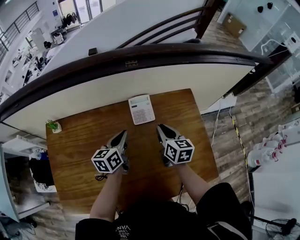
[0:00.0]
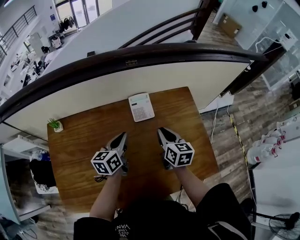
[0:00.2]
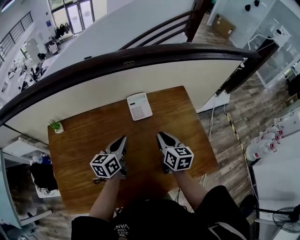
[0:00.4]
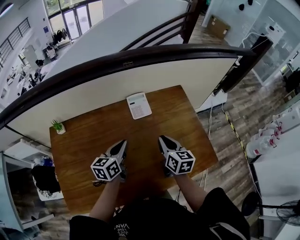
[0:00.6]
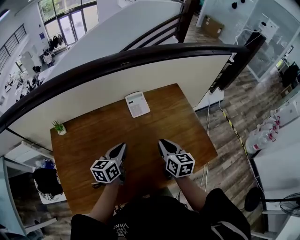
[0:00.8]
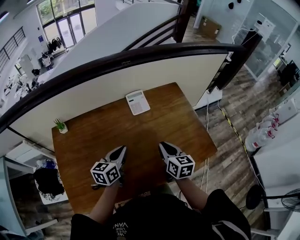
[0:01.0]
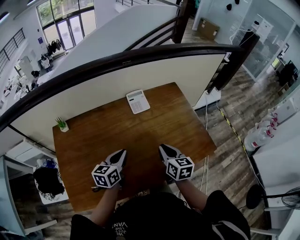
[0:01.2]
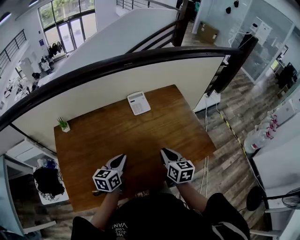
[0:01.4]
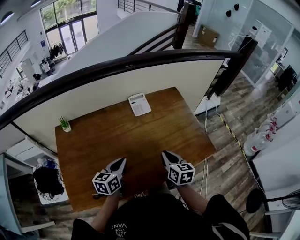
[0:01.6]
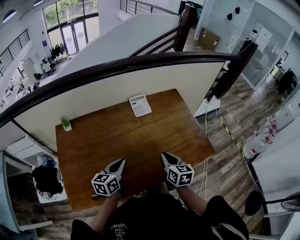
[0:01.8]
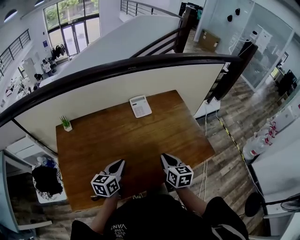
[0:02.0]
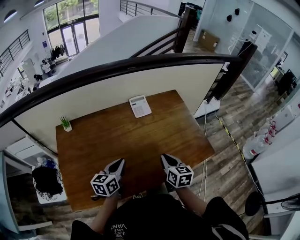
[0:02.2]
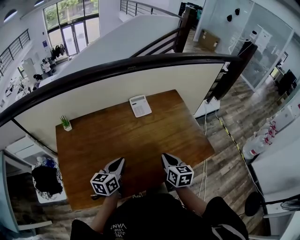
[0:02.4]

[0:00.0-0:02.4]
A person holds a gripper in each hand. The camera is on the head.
0:00.0 to 0:01.2: The grippers both shift backward by roughly 20 cm.
0:01.2 to 0:02.4: The left gripper ends up approximately 5 cm from where it was.

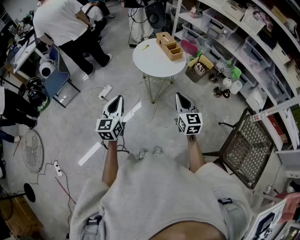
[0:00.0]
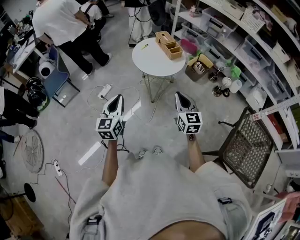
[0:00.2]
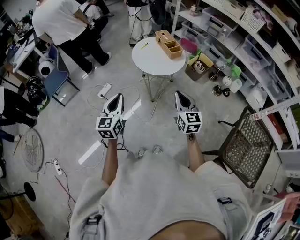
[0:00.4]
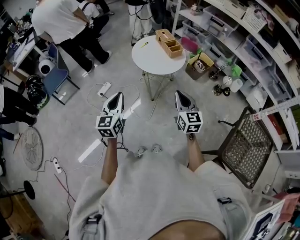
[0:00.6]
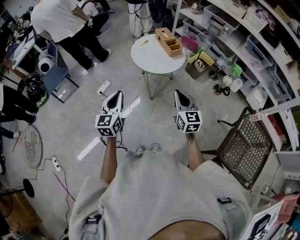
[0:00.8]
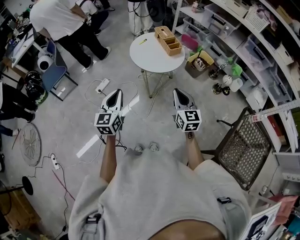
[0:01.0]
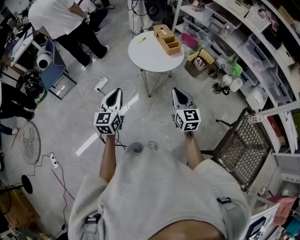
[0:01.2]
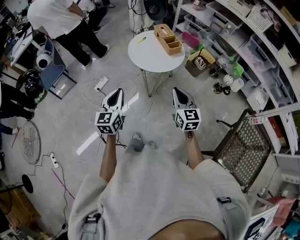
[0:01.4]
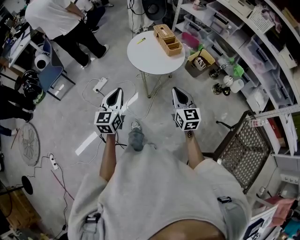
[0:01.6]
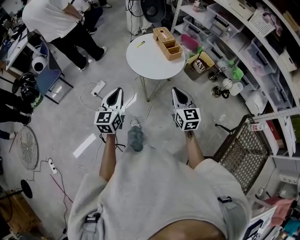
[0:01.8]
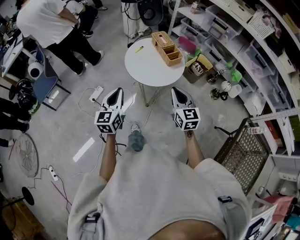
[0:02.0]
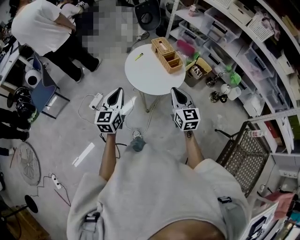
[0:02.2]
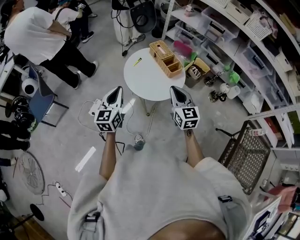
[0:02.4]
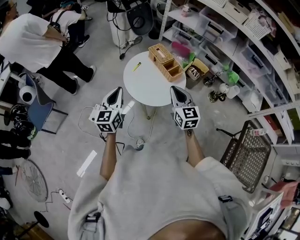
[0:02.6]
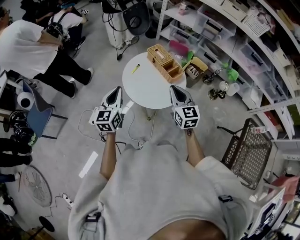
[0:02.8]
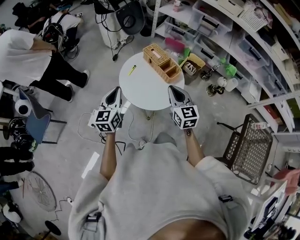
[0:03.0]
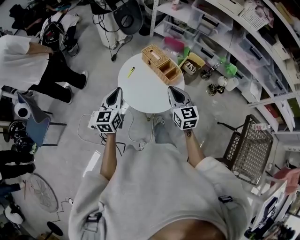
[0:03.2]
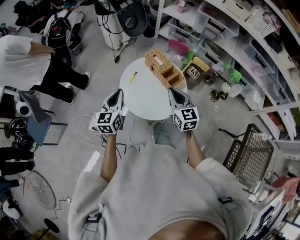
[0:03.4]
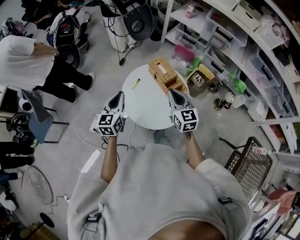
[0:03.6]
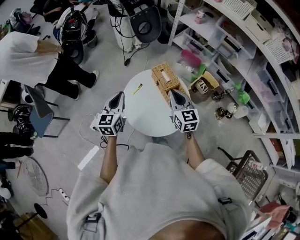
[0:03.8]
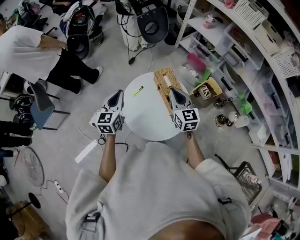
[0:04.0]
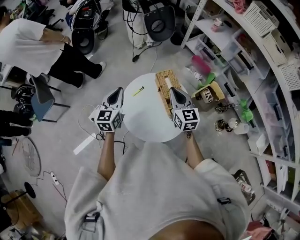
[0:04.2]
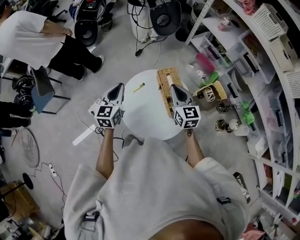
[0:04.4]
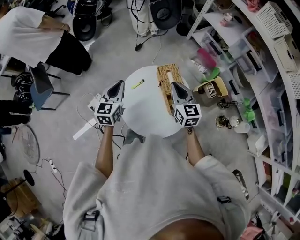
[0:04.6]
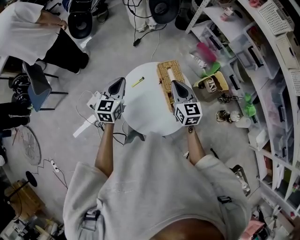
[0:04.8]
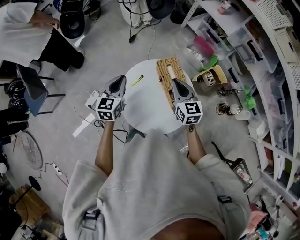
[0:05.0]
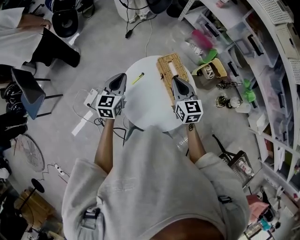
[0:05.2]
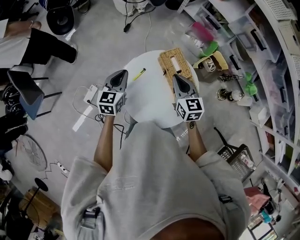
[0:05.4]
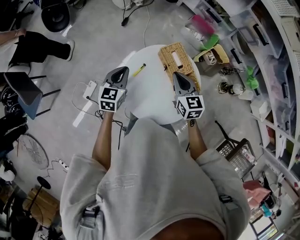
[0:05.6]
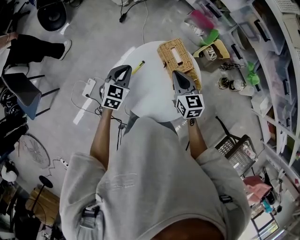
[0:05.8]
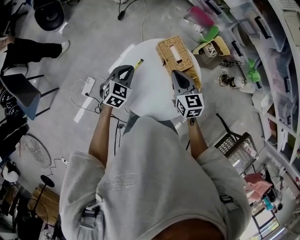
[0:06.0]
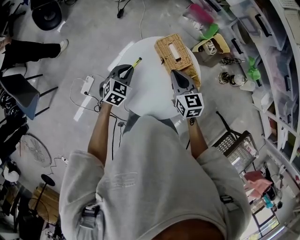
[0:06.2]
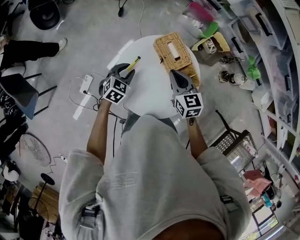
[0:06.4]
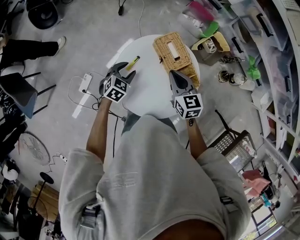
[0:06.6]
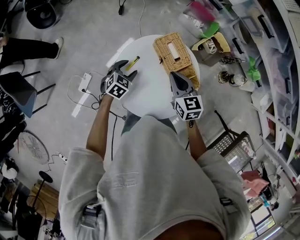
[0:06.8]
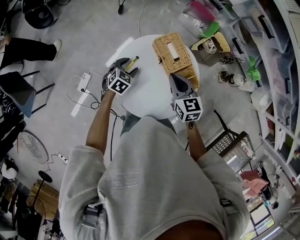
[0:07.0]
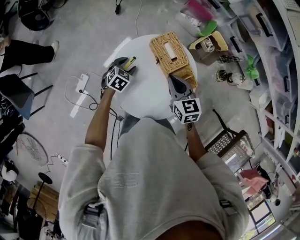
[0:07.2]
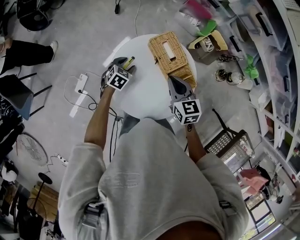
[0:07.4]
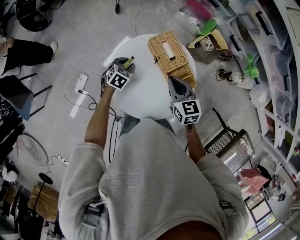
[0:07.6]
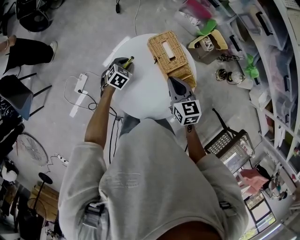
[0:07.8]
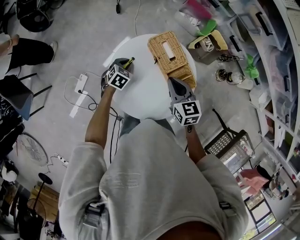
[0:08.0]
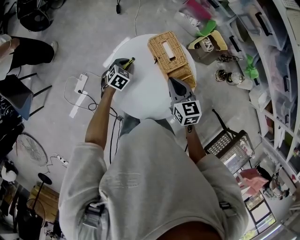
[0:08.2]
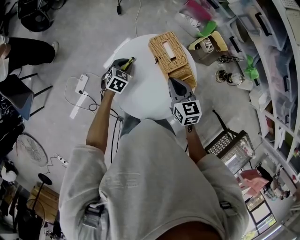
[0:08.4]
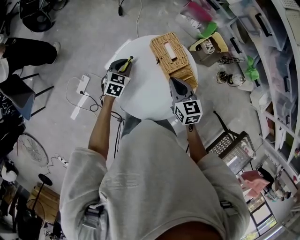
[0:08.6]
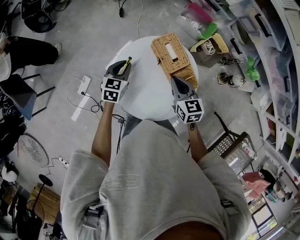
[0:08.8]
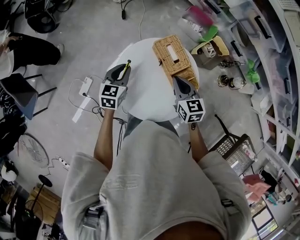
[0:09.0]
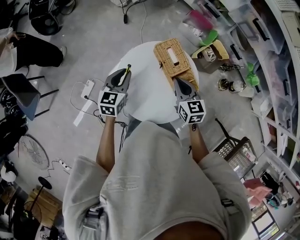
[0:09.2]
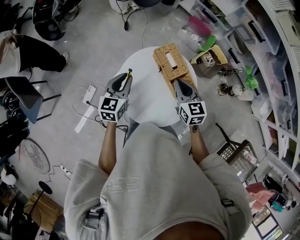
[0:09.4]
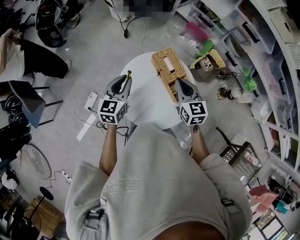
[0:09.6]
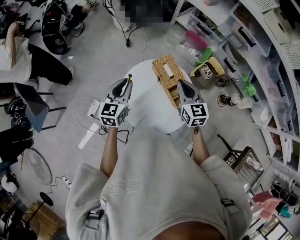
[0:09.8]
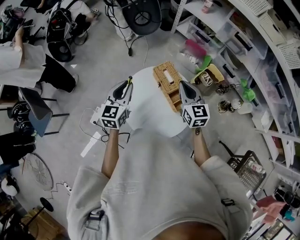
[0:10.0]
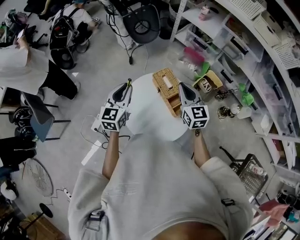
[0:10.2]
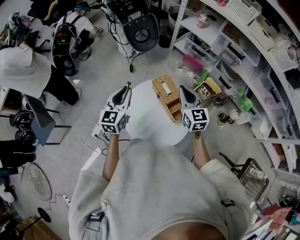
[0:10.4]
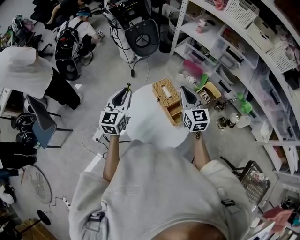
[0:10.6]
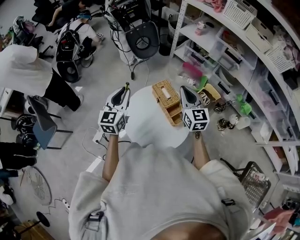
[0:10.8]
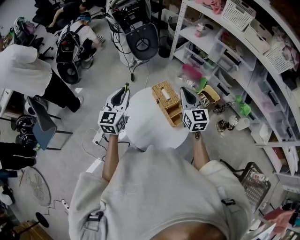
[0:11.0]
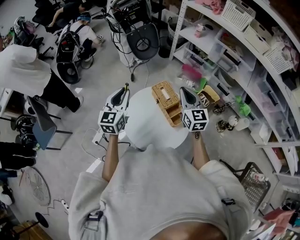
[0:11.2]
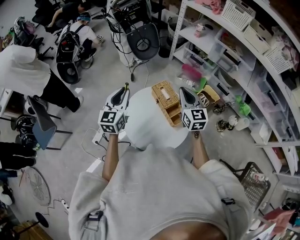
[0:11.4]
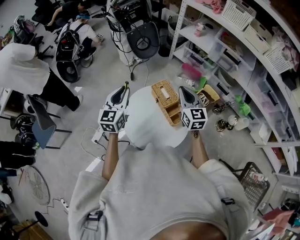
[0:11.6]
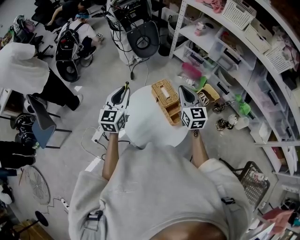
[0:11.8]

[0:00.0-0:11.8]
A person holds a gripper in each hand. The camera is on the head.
0:00.0 to 0:01.4: The left gripper is displaced to the right by some 5 cm. Meanwhile the right gripper shifts by about 5 cm.
0:01.4 to 0:03.0: Both grippers travel together forward, about 30 cm.
0:03.0 to 0:04.4: Both grippers travel together forward, roughly 20 cm. The right gripper changes its angle by roughly 20 degrees.
0:04.4 to 0:06.0: The right gripper moves downward, approximately 10 cm. The left gripper moves downward, approximately 15 cm, and swivels some 50 degrees.
0:06.0 to 0:07.4: The left gripper heads downward, covering roughly 15 cm, and opens its fingers.
0:07.4 to 0:08.8: The left gripper is displaced upward by approximately 10 cm, rotates about 30 degrees, and closes.
0:08.8 to 0:10.4: Both grippers travel together upward, approximately 20 cm. The right gripper rotates about 30 degrees, while the left gripper turns by roughly 30 degrees.
0:10.4 to 0:11.8: The grippers move only a little.

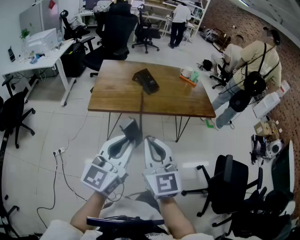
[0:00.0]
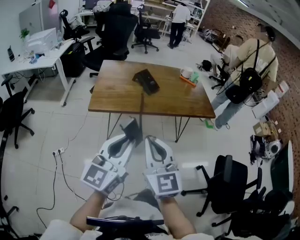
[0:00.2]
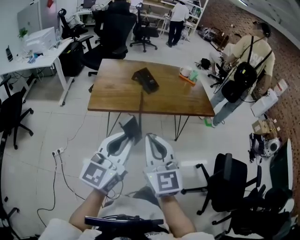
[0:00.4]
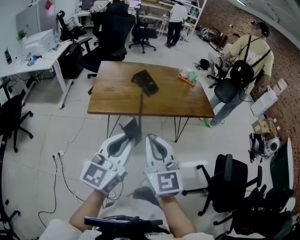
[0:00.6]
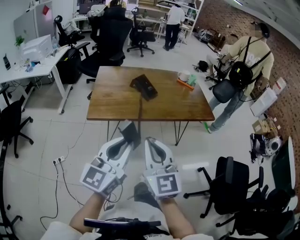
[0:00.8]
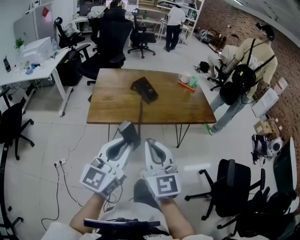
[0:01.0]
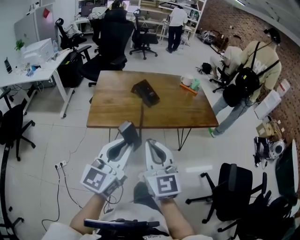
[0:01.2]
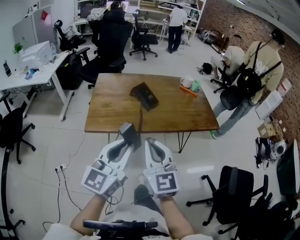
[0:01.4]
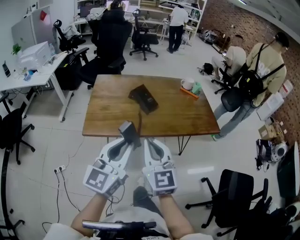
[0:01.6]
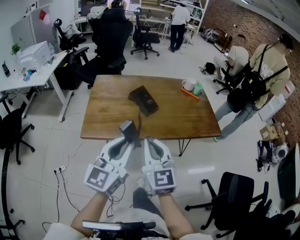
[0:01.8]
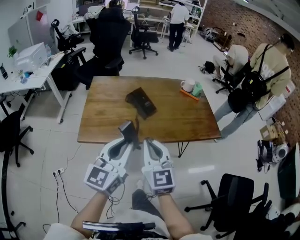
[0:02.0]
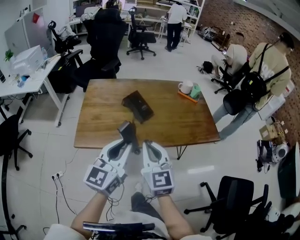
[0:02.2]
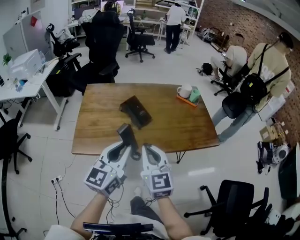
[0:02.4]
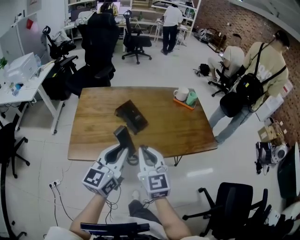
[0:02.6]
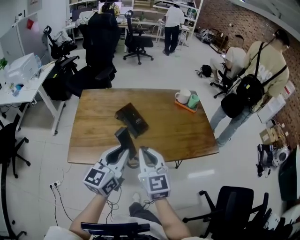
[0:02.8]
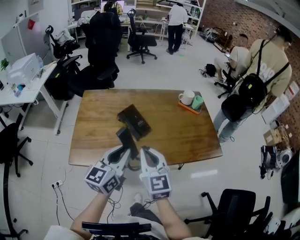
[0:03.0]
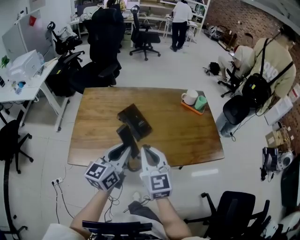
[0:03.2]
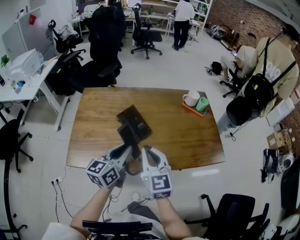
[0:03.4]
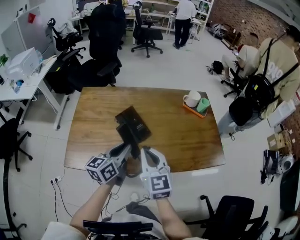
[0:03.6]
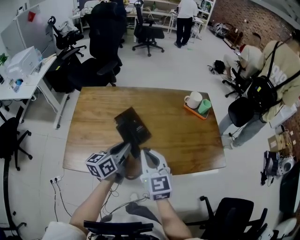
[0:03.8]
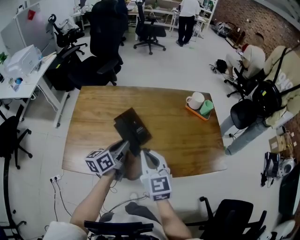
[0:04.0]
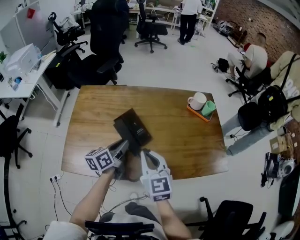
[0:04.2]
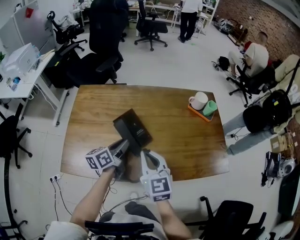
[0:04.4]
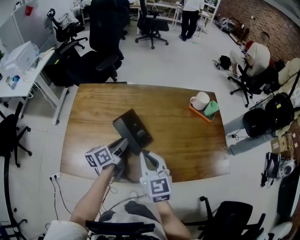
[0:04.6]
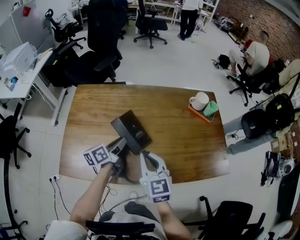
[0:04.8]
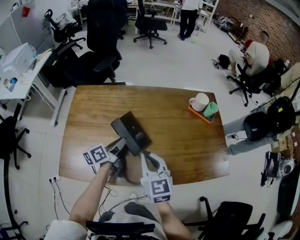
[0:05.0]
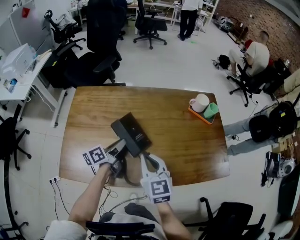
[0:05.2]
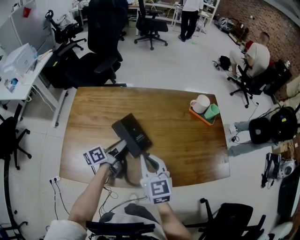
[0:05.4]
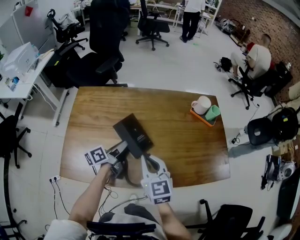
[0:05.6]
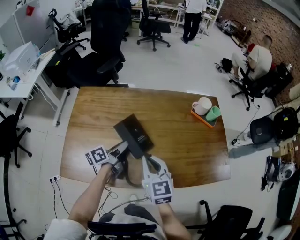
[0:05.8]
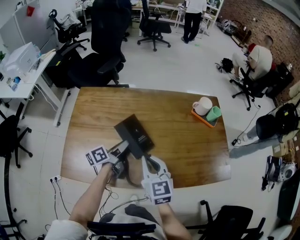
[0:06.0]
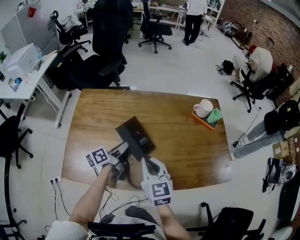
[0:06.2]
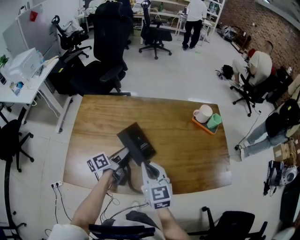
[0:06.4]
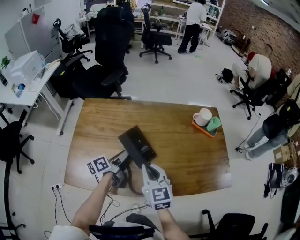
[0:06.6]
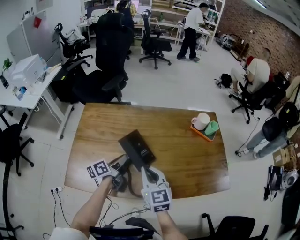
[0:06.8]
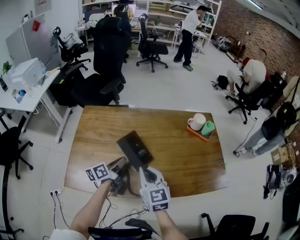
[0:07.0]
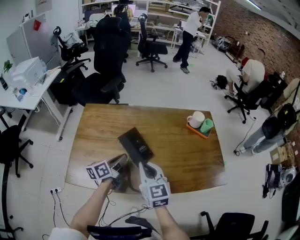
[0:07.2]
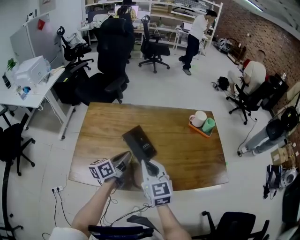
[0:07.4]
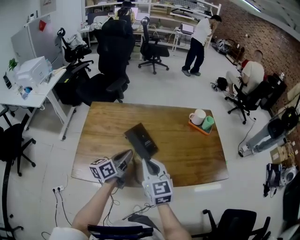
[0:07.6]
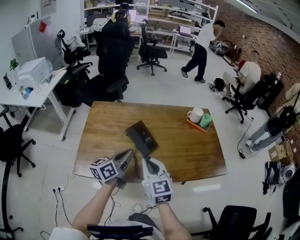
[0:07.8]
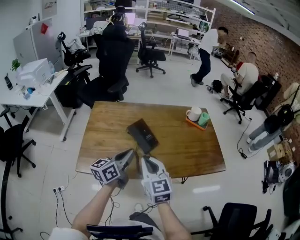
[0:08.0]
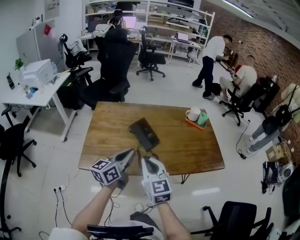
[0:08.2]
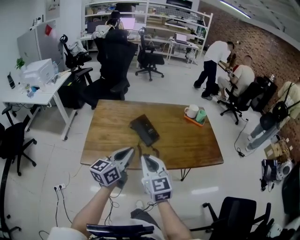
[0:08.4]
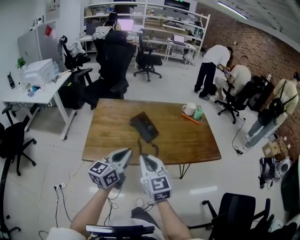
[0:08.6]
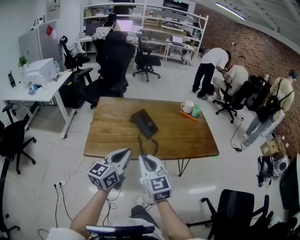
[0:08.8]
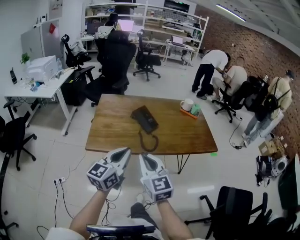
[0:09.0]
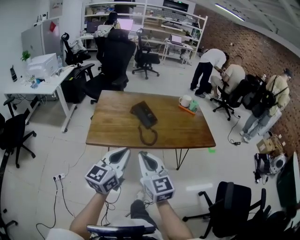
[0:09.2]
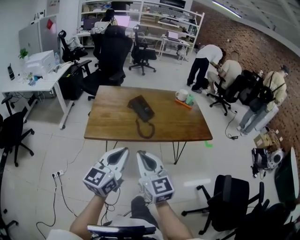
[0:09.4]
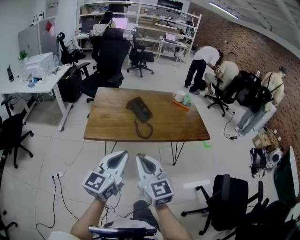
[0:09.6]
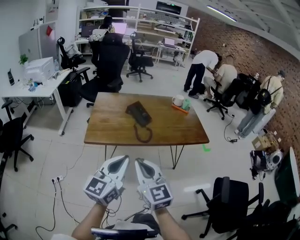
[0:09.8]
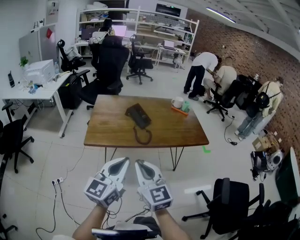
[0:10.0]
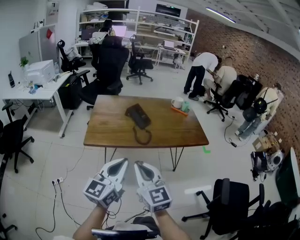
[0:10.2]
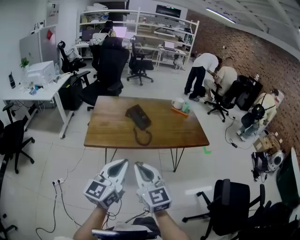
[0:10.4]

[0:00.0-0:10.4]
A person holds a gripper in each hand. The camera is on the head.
0:00.0 to 0:01.4: The two grippers go roughly 10 cm forward.
0:01.4 to 0:03.0: The grippers both shift forward by approximately 25 cm.
0:03.0 to 0:04.4: The right gripper heads forward and downward, covering approximately 15 cm; the left gripper travels forward and downward by approximately 25 cm, and turns by roughly 40 degrees.
0:04.4 to 0:06.0: The left gripper shifts by approximately 5 cm.
0:06.0 to 0:07.4: The left gripper is displaced upward and backward by roughly 10 cm, and closes; the right gripper heads upward, covering about 5 cm.
0:07.4 to 0:09.0: The left gripper heads backward and upward, covering some 35 cm, and rotates approximately 40 degrees. The right gripper is displaced backward by approximately 30 cm.
0:09.0 to 0:10.4: The two grippers go some 15 cm backward.
